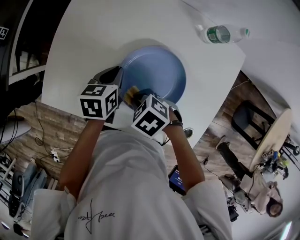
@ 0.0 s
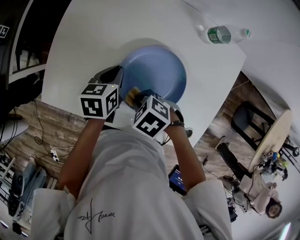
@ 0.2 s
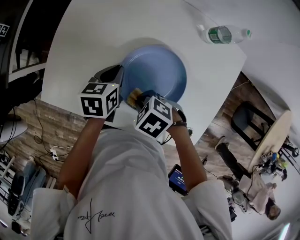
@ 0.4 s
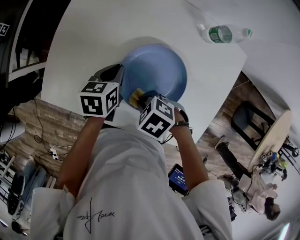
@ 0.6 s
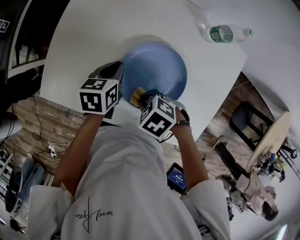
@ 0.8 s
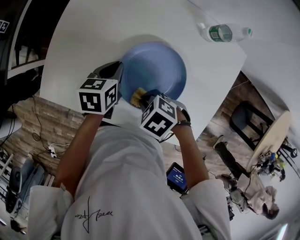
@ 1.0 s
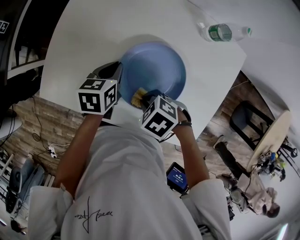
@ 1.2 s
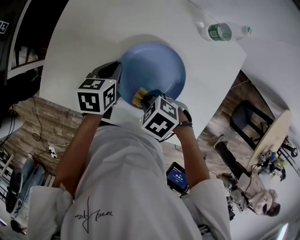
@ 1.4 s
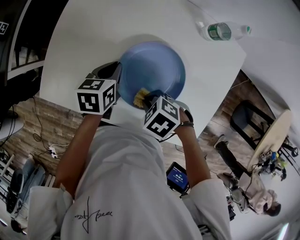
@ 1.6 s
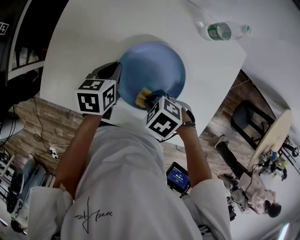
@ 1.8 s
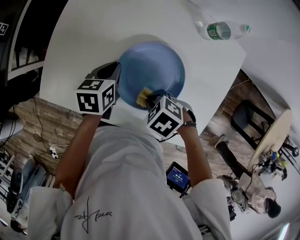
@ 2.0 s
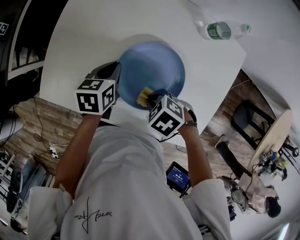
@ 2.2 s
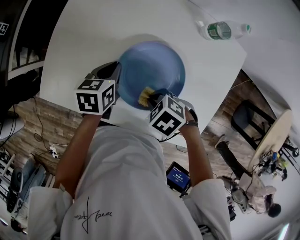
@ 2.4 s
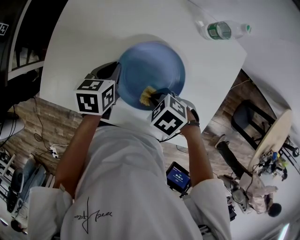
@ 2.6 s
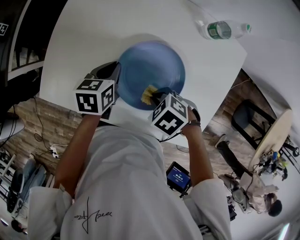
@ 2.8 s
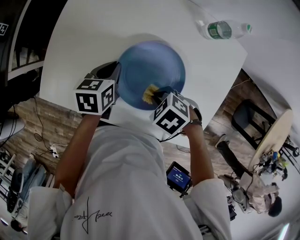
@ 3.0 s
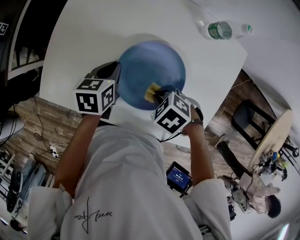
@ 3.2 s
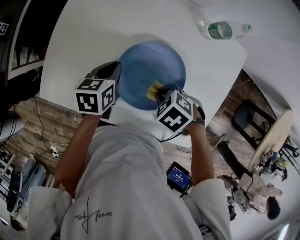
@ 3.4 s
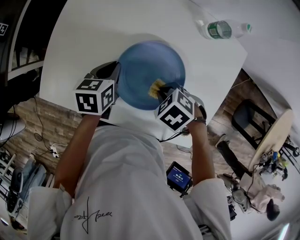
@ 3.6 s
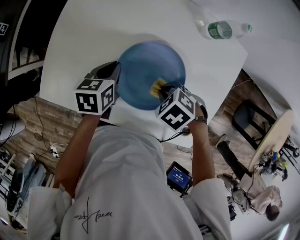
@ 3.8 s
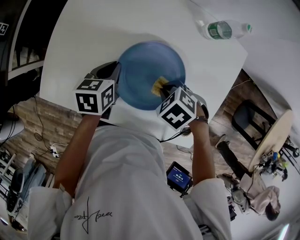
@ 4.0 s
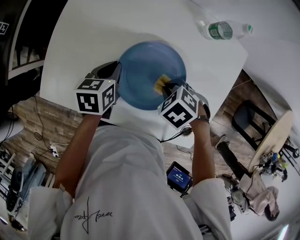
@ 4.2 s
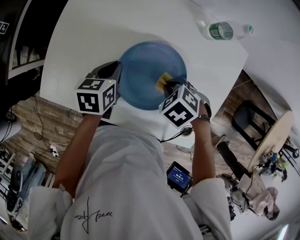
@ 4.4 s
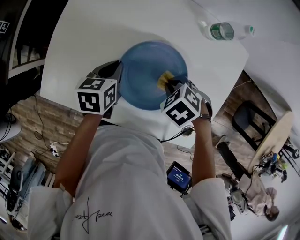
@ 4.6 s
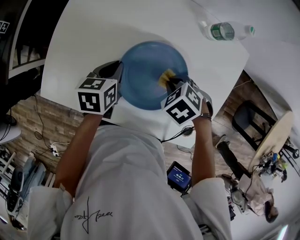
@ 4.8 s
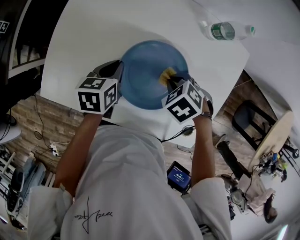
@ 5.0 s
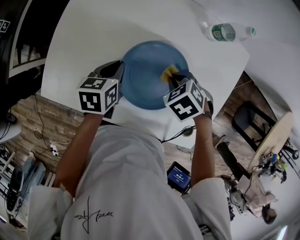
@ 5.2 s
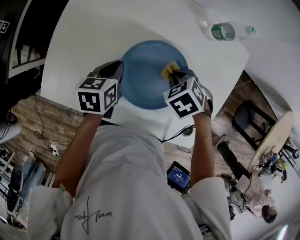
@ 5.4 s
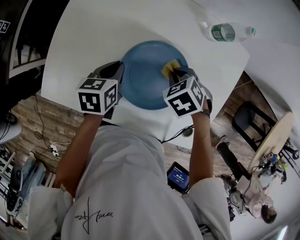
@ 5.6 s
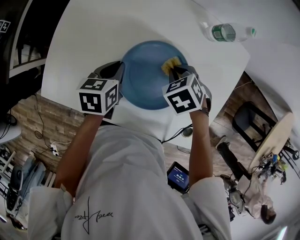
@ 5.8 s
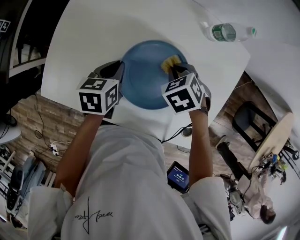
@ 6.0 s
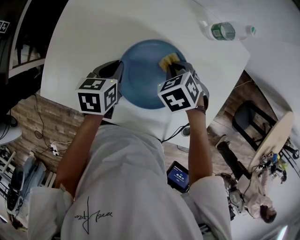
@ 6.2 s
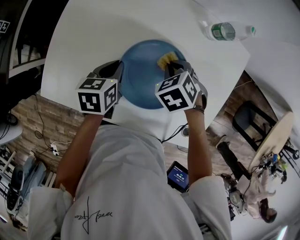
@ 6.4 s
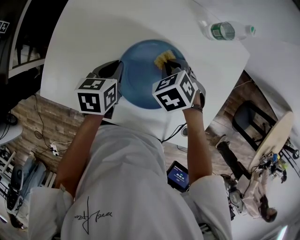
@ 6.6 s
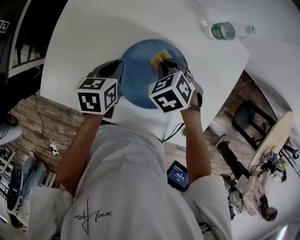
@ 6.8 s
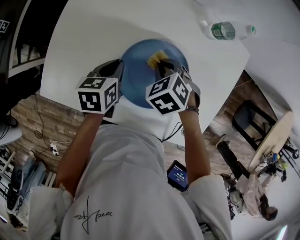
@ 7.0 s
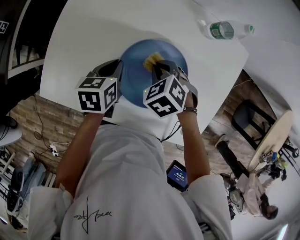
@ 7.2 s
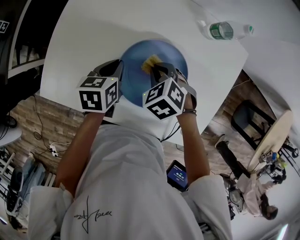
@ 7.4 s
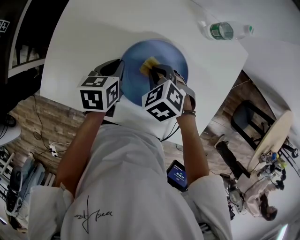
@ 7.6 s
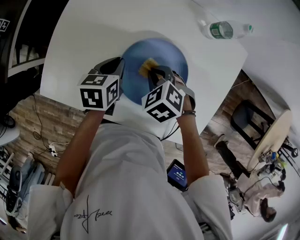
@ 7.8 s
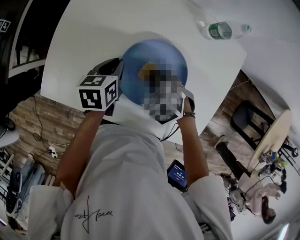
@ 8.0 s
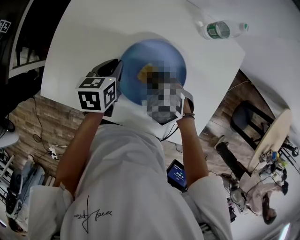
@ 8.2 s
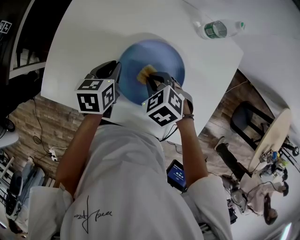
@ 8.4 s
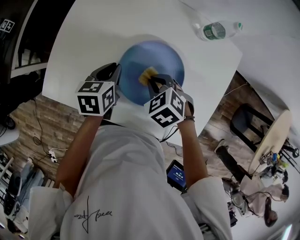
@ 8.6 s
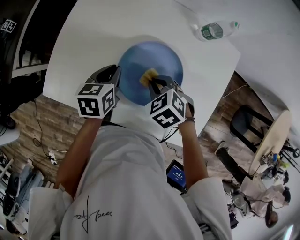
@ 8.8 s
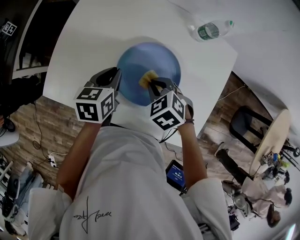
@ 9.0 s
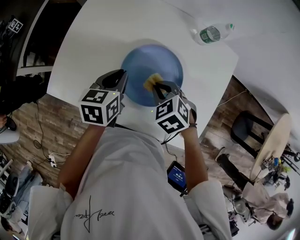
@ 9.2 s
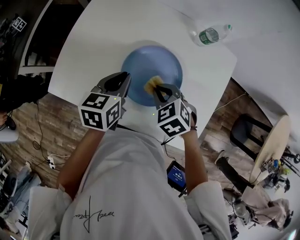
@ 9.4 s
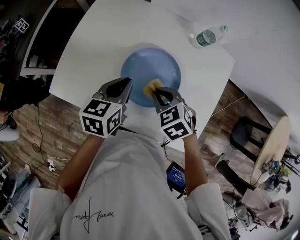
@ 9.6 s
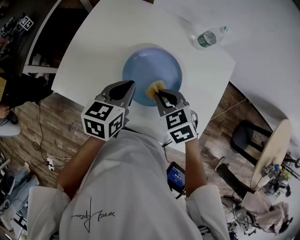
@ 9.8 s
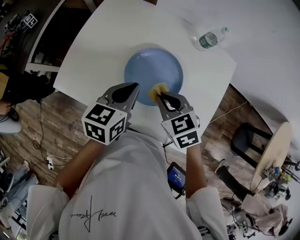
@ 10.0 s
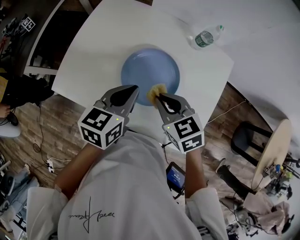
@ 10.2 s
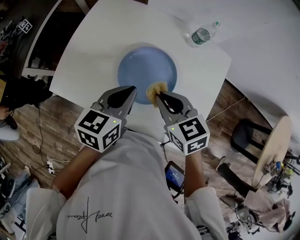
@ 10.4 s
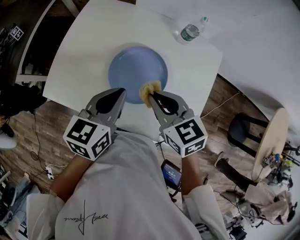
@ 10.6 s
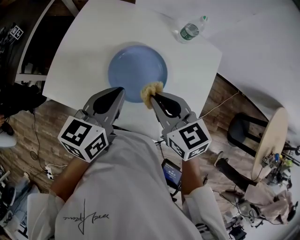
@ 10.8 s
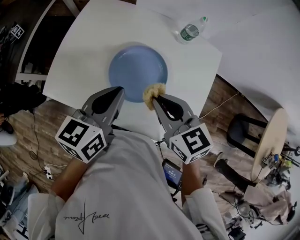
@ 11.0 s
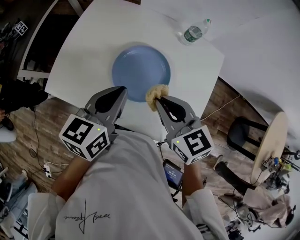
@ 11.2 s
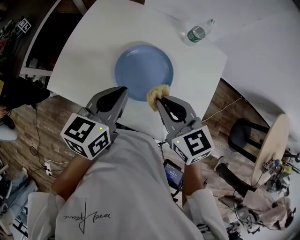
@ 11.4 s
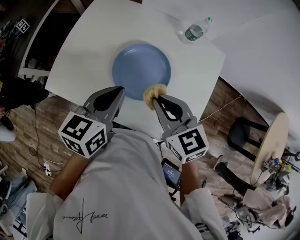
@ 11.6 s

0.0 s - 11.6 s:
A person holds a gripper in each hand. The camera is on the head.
0.0 s - 1.4 s: There are only small adjustments of the grippers.
1.4 s - 2.8 s: The grippers stay close to where they were, moving slightly.
2.8 s - 4.4 s: The right gripper changes place by roughly 5 cm.
4.4 s - 5.8 s: The right gripper moves some 5 cm.
5.8 s - 7.2 s: The right gripper shifts by roughly 5 cm.
7.2 s - 8.8 s: The right gripper goes roughly 5 cm backward.
8.8 s - 10.2 s: The left gripper travels upward, backward and to the right by some 15 cm, while the right gripper shifts about 10 cm upward and backward, and rotates approximately 30 degrees.
10.2 s - 11.6 s: The right gripper shifts roughly 5 cm upward.

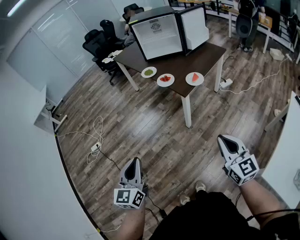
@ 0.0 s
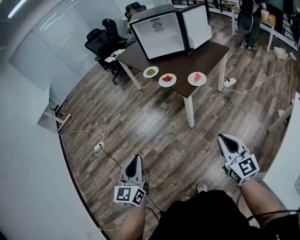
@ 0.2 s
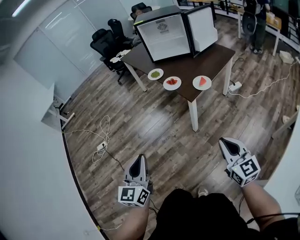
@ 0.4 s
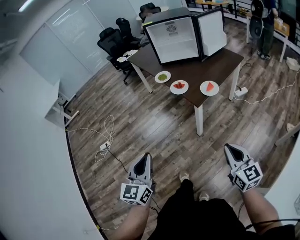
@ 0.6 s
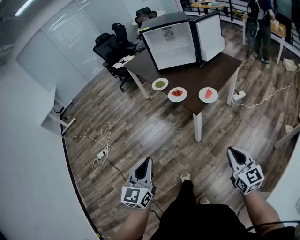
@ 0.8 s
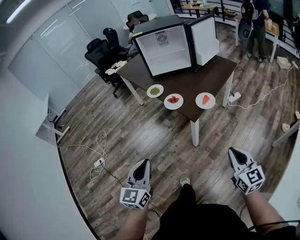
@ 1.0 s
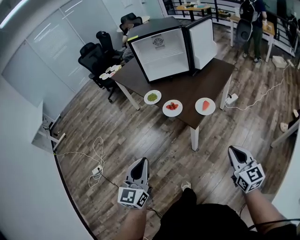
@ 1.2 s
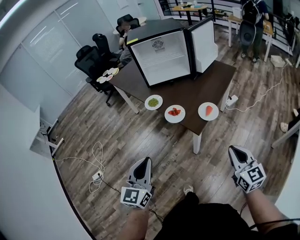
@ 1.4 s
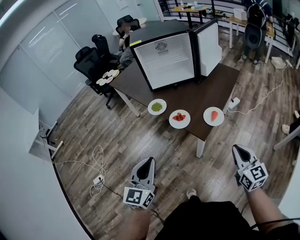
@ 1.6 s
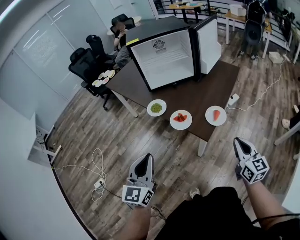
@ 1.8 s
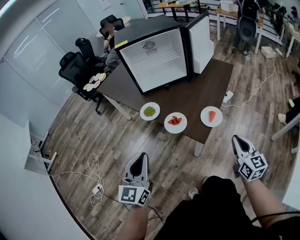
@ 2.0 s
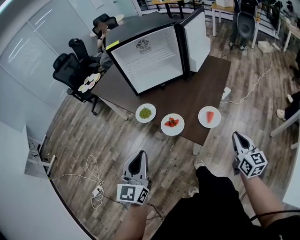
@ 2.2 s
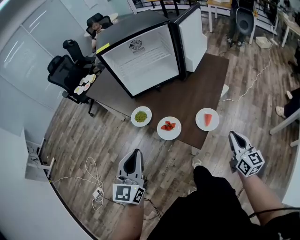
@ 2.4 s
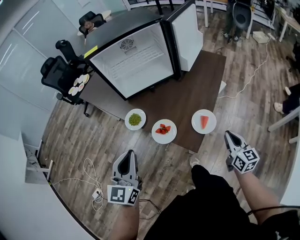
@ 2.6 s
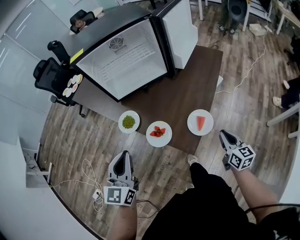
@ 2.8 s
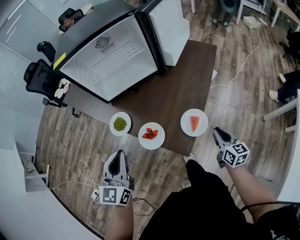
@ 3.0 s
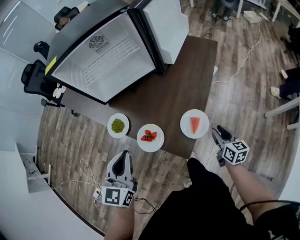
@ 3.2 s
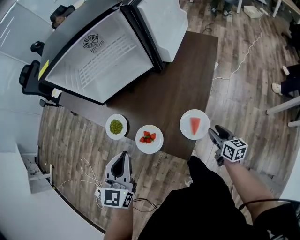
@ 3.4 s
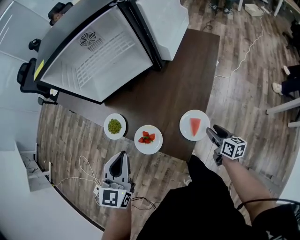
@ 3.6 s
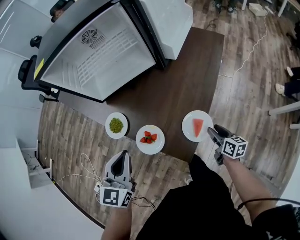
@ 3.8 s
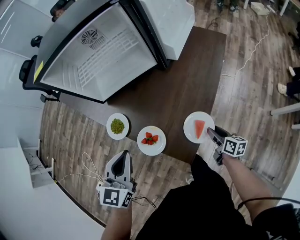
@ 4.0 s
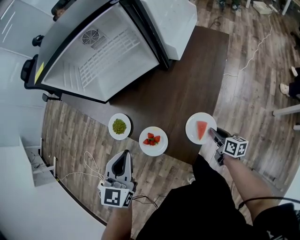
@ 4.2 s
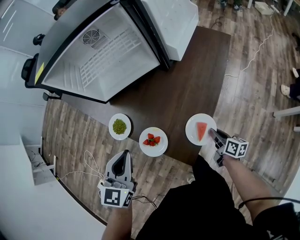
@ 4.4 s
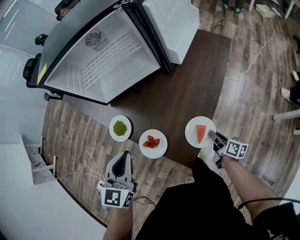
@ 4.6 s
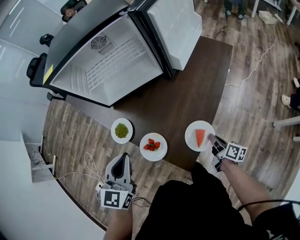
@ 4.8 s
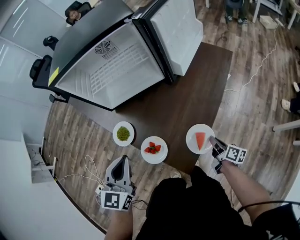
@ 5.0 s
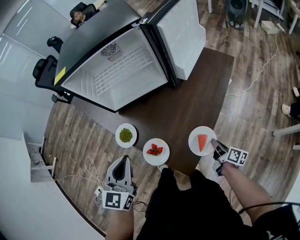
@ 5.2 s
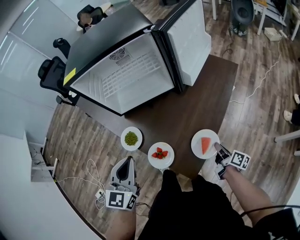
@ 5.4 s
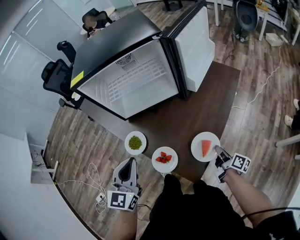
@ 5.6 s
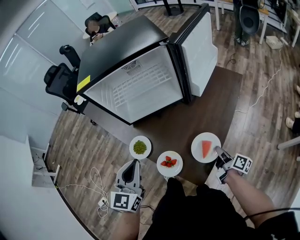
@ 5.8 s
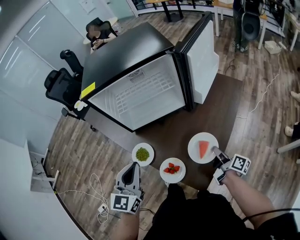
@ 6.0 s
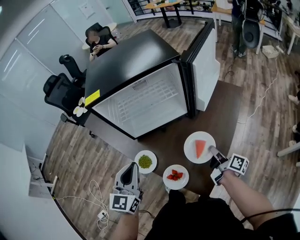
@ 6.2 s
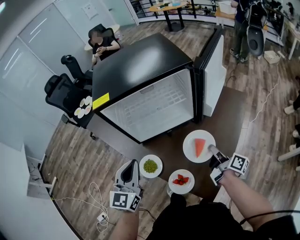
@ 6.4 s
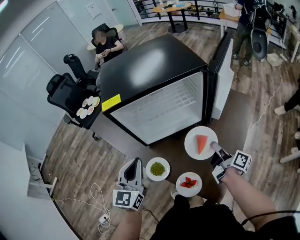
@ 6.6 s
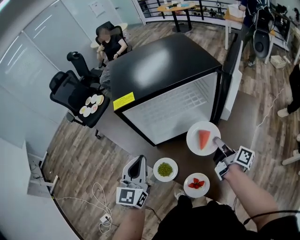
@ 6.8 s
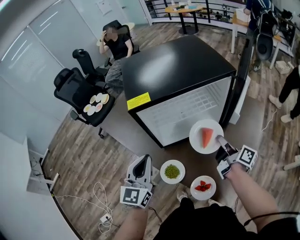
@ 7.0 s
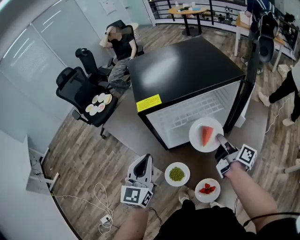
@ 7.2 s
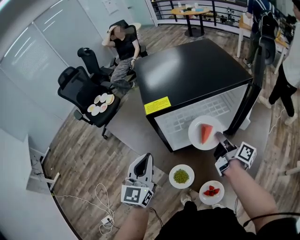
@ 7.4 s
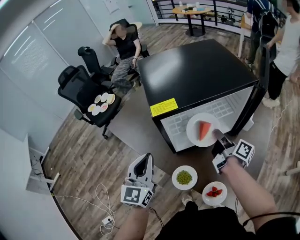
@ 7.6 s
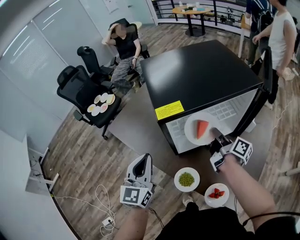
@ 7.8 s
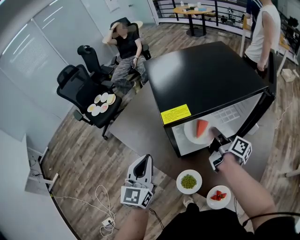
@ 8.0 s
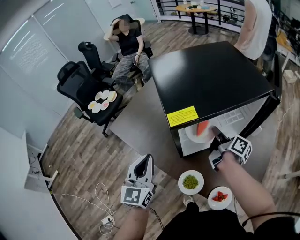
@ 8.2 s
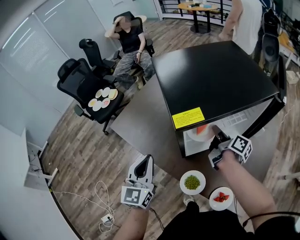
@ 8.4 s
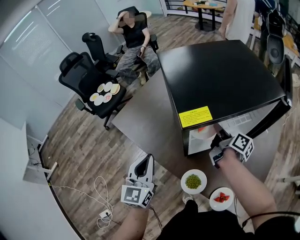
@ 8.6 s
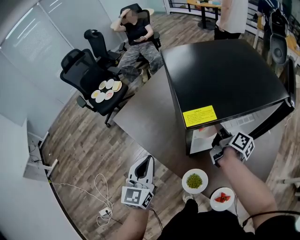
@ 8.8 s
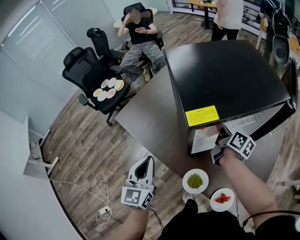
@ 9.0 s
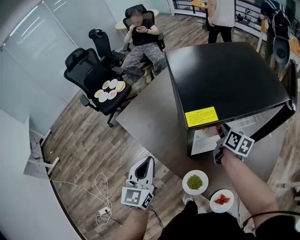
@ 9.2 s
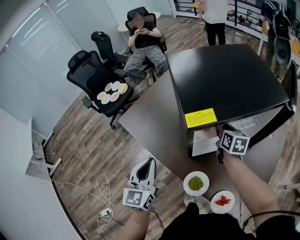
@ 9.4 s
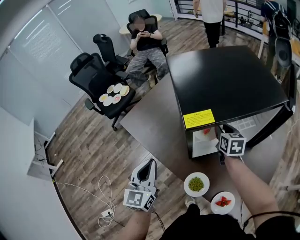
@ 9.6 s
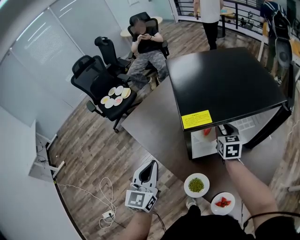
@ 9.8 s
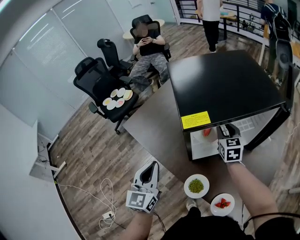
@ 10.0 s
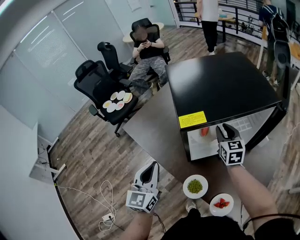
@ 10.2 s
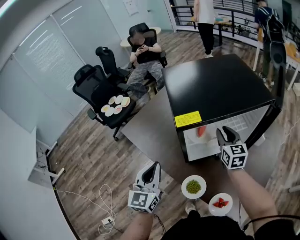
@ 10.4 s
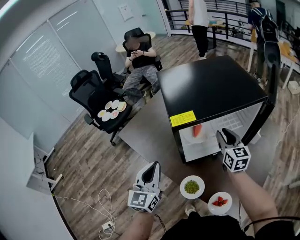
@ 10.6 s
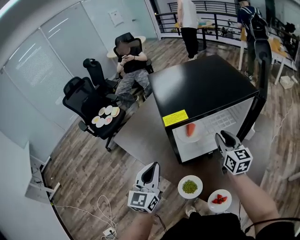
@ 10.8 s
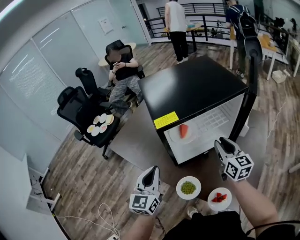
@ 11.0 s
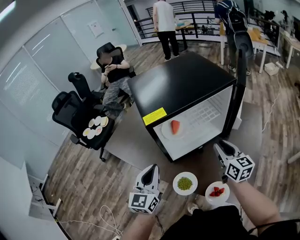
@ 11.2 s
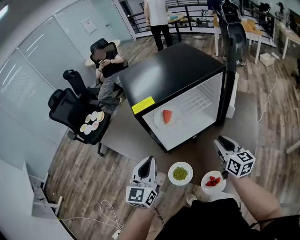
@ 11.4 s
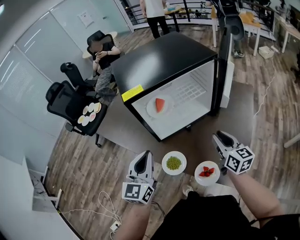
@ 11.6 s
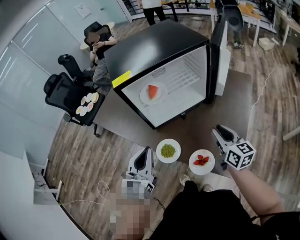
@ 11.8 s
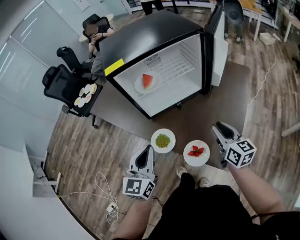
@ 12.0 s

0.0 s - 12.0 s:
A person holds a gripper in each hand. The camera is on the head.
0.0 s - 1.6 s: Both grippers travel together forward, about 35 cm.
1.6 s - 3.0 s: The left gripper shifts some 30 cm forward; the right gripper travels forward and downward by roughly 30 cm, and rotates roughly 30 degrees.
3.0 s - 4.4 s: The right gripper moves downward and forward, some 15 cm, rotates approximately 30 degrees, and opens, then closes once more. Meanwhile the left gripper is displaced forward by roughly 10 cm.
4.4 s - 6.0 s: The right gripper heads upward and forward, covering about 15 cm. Meanwhile the left gripper goes some 10 cm upward and to the left.
6.0 s - 7.6 s: The left gripper shifts some 25 cm to the left and forward; the right gripper moves to the left, forward and upward, some 40 cm.
7.6 s - 9.0 s: The right gripper is displaced forward and to the left by approximately 15 cm, and changes its angle by about 20 degrees; the left gripper travels to the left by about 10 cm.
9.0 s - 10.4 s: The left gripper ends up some 5 cm from where it was; the right gripper moves approximately 5 cm, and rolls counterclockwise, seen from behind, by approximately 50 degrees.
10.4 s - 12.0 s: The left gripper shifts some 20 cm to the right and backward, while the right gripper goes roughly 35 cm backward and to the right, and swivels roughly 20 degrees.
